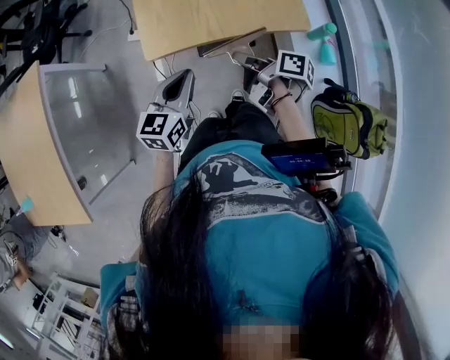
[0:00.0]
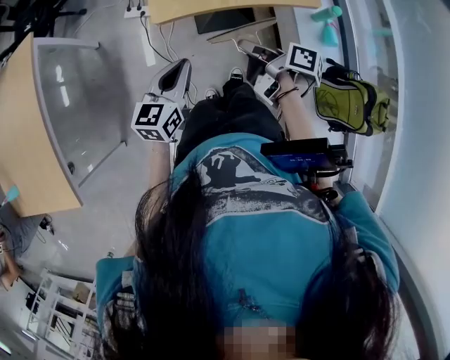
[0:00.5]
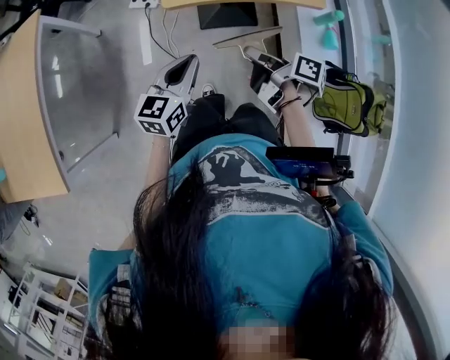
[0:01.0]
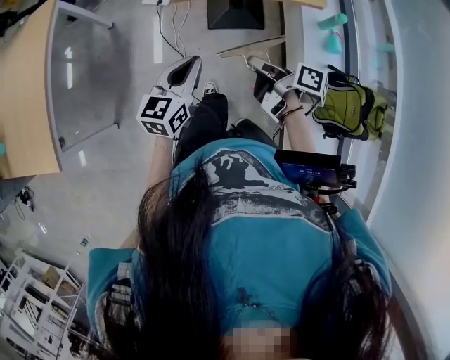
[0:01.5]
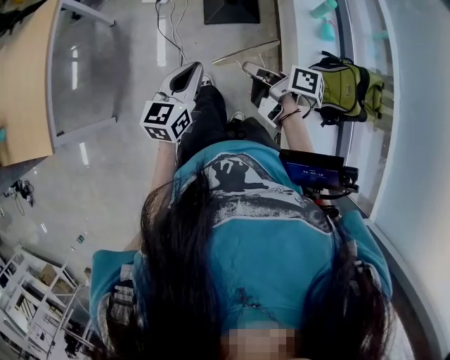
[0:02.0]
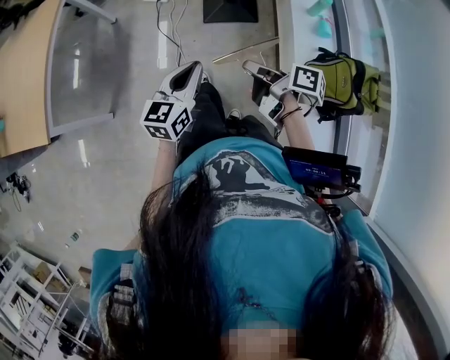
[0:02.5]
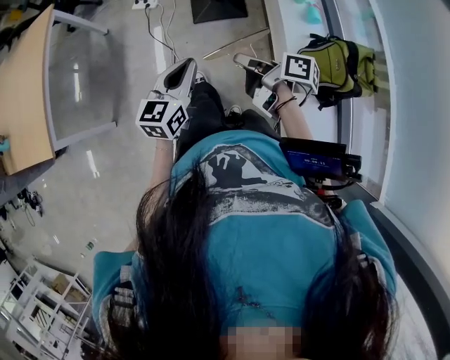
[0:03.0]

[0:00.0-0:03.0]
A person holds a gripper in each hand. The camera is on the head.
0.0 to 1.5 s: The left gripper moves about 20 cm.
1.5 to 3.0 s: The left gripper shifts by approximately 20 cm.

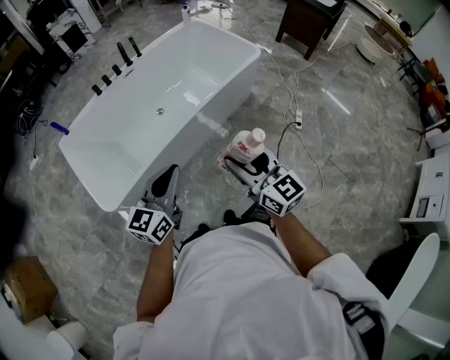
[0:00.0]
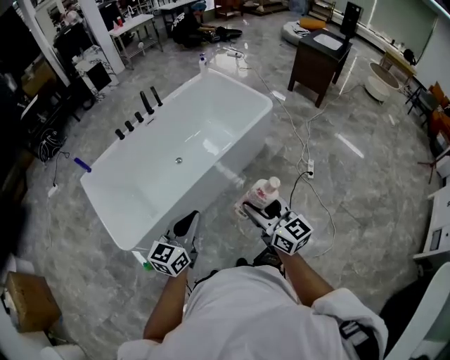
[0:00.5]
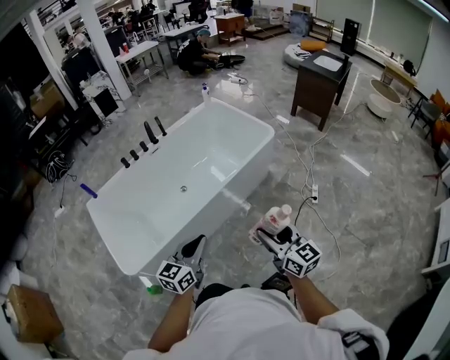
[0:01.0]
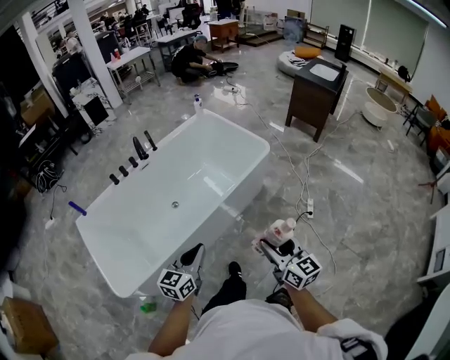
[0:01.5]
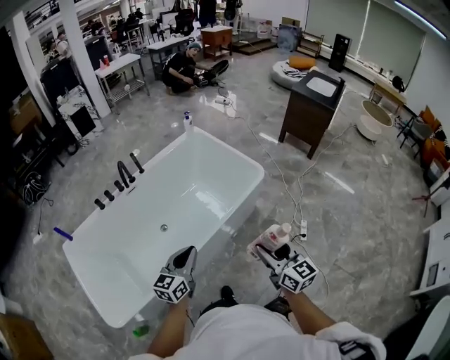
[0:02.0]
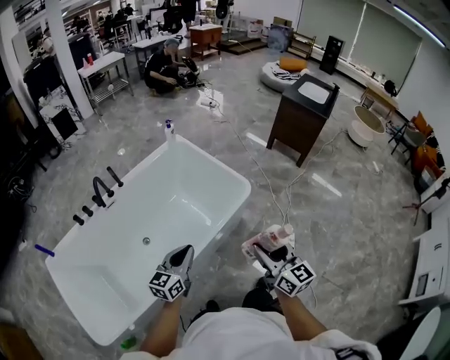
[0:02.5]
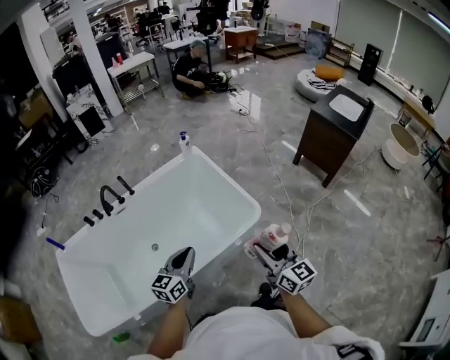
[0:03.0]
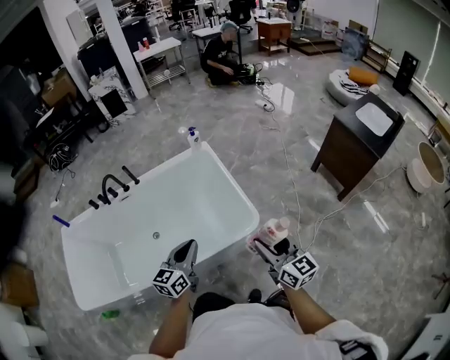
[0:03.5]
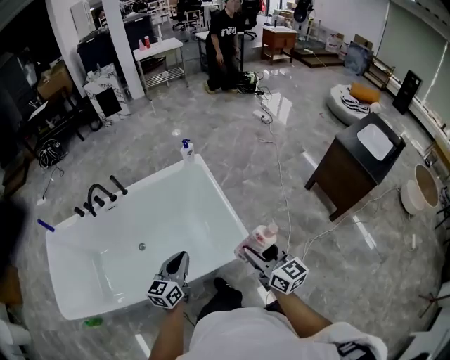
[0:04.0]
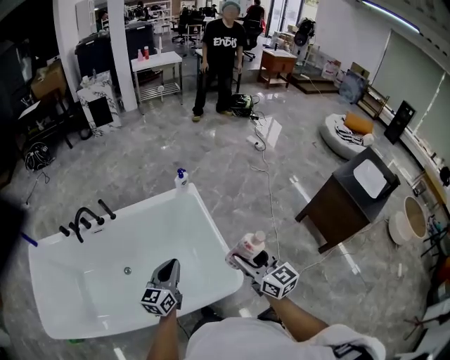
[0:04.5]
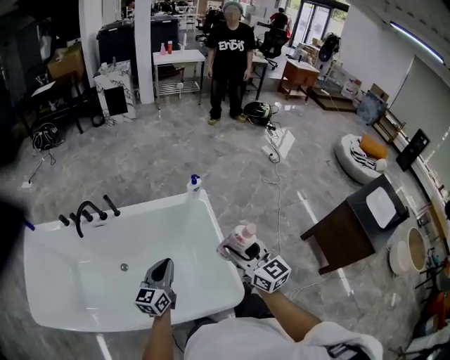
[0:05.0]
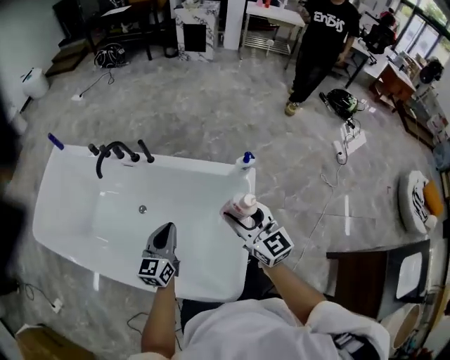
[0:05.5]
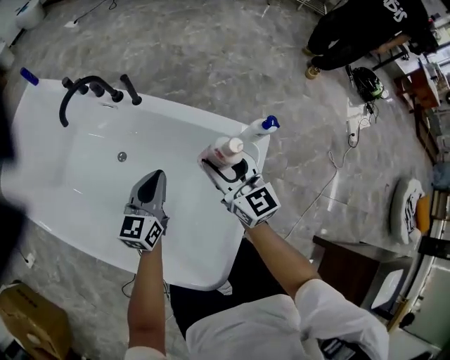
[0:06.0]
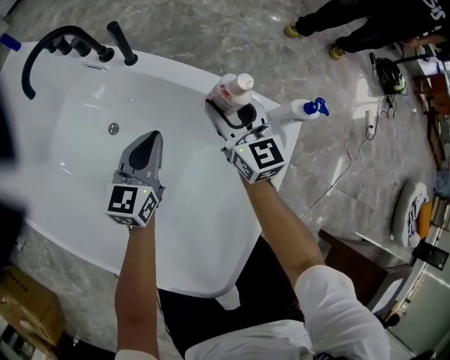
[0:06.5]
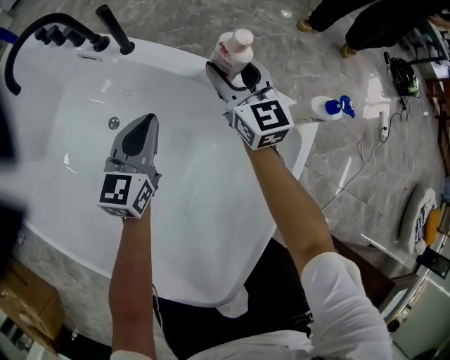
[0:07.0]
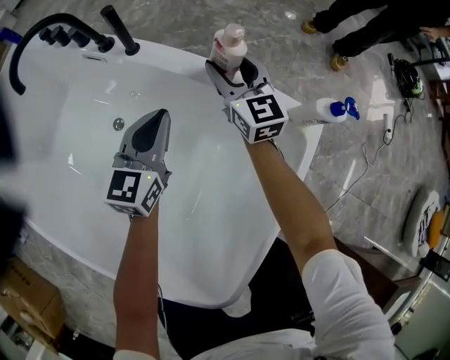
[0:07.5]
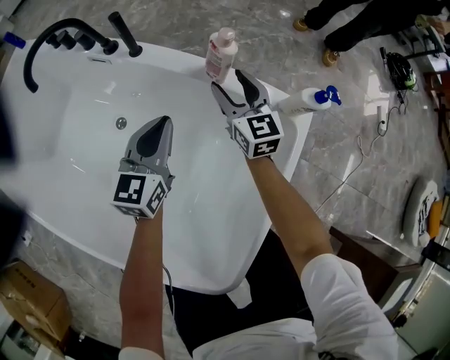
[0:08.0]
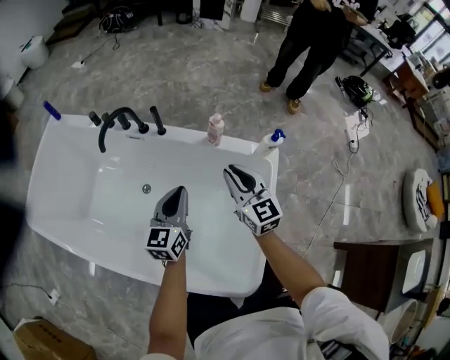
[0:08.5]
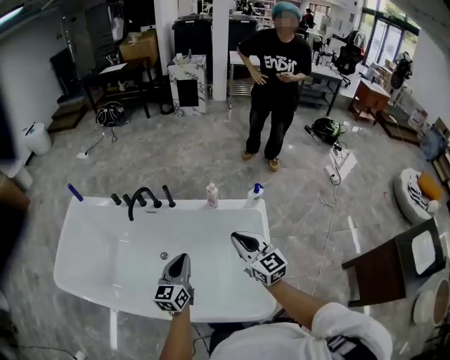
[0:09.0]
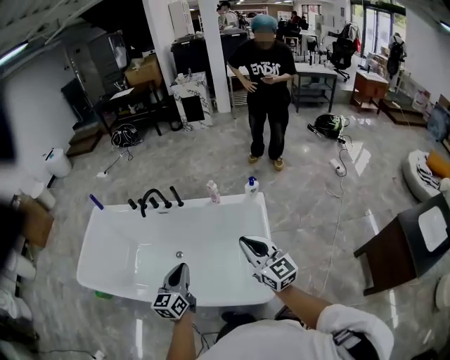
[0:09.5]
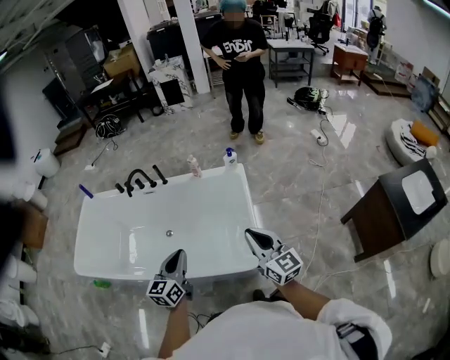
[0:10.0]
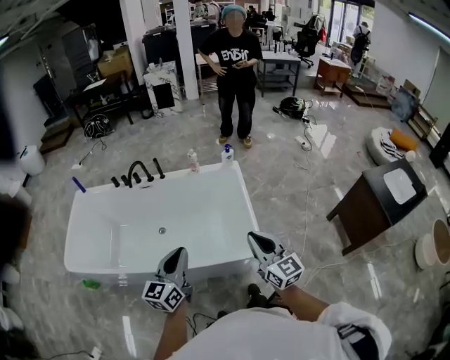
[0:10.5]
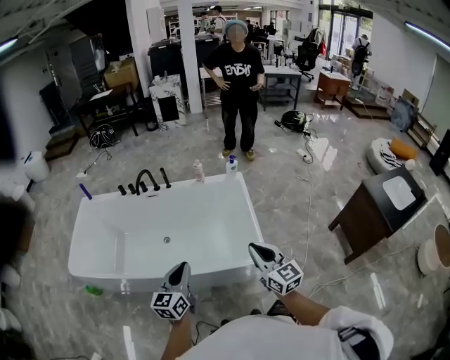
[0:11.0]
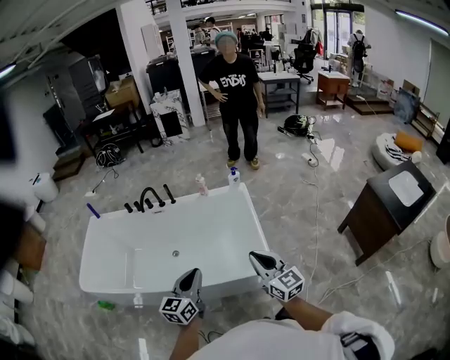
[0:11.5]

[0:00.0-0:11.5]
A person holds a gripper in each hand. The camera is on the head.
0.0 to 2.0 s: The right gripper is displaced forward and to the right by roughly 35 cm; the left gripper is displaced forward by roughly 35 cm.
2.0 to 4.0 s: The pair of grippers is taken some 50 cm. The left gripper changes its angle by roughly 30 degrees. The right gripper rotates approximately 30 degrees.
4.0 to 6.0 s: The two grippers travel together, about 50 cm. The right gripper changes its angle by some 40 degrees; the left gripper turns by roughly 40 degrees.
6.0 to 7.5 s: The left gripper shifts approximately 20 cm downward and forward; the right gripper is displaced forward and downward by roughly 30 cm.
7.5 to 9.5 s: Both grippers are carried backward, some 50 cm. The two grippers go about 40 cm upward. The right gripper closes its fingers.
9.5 to 11.5 s: The two grippers go approximately 25 cm backward.

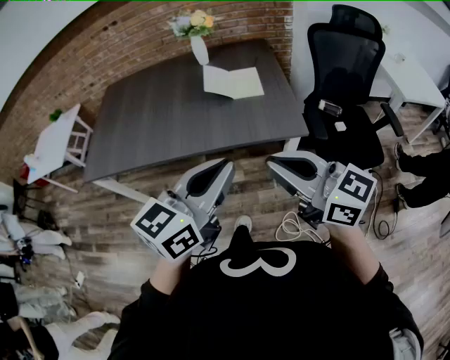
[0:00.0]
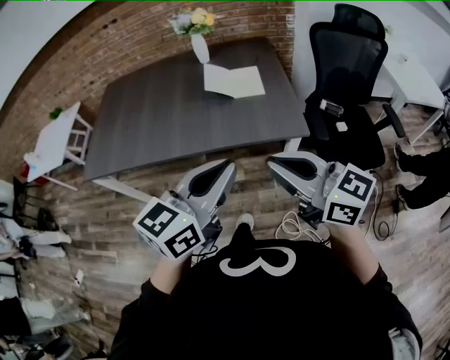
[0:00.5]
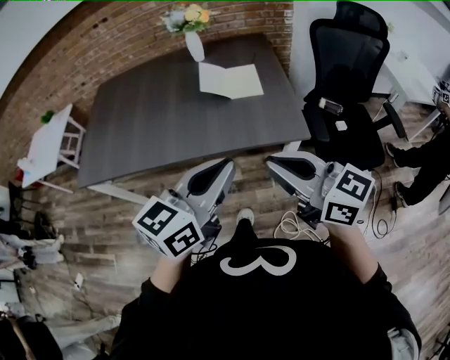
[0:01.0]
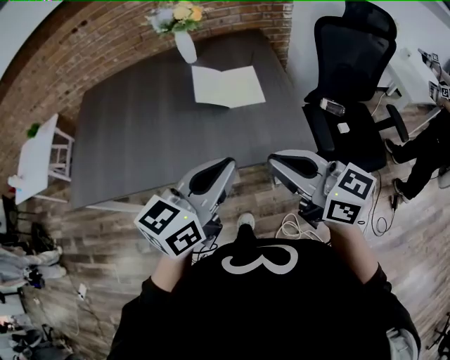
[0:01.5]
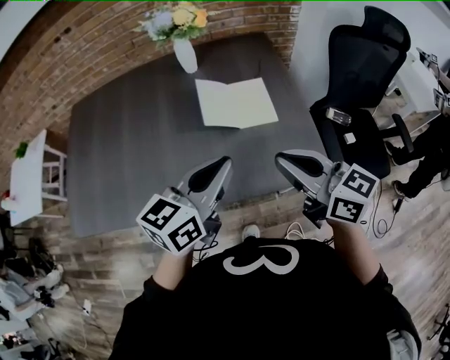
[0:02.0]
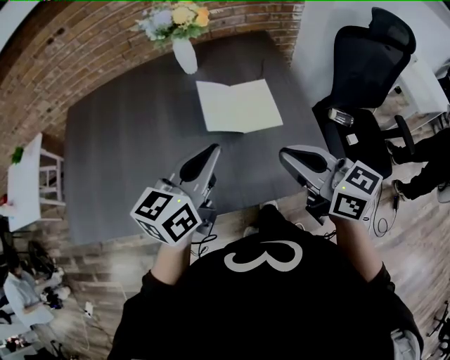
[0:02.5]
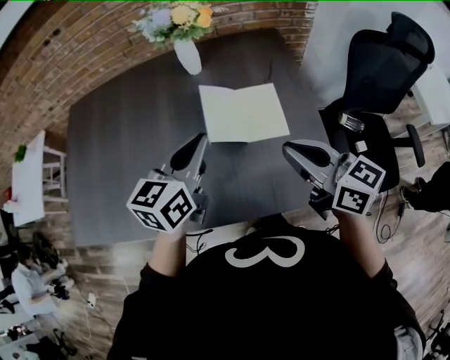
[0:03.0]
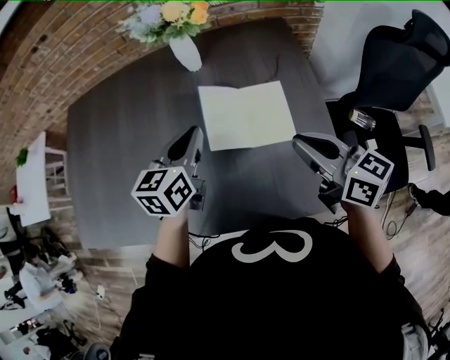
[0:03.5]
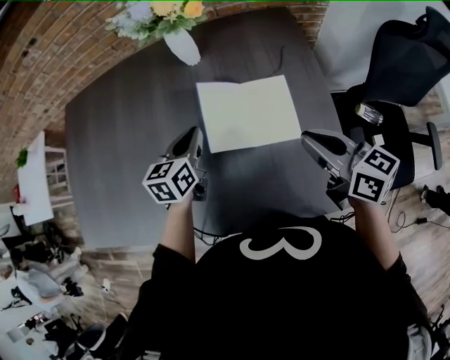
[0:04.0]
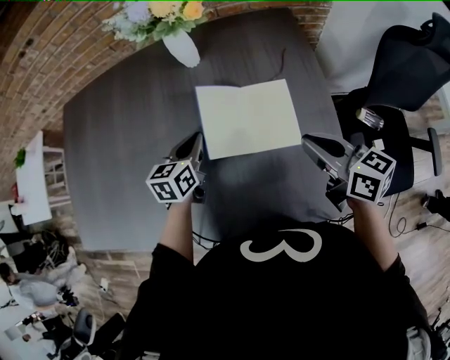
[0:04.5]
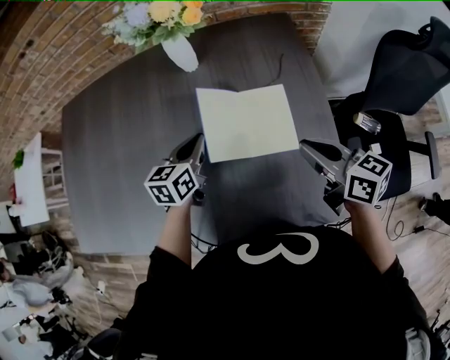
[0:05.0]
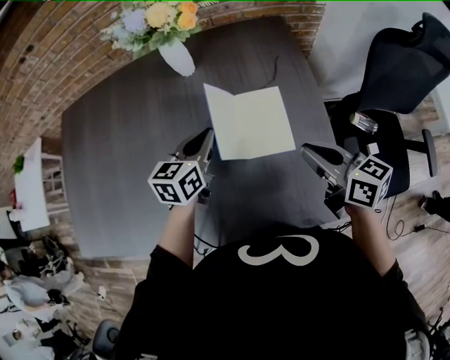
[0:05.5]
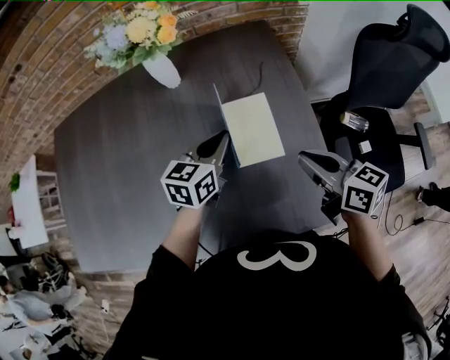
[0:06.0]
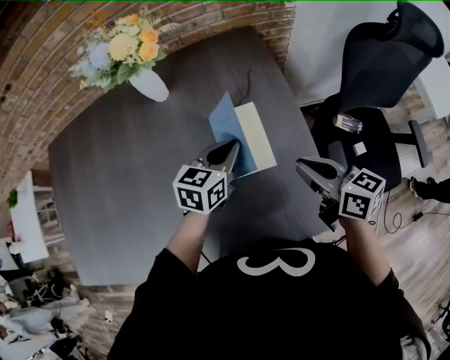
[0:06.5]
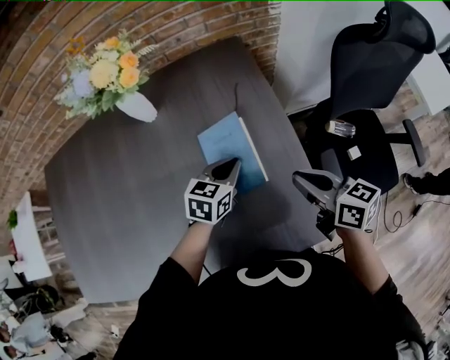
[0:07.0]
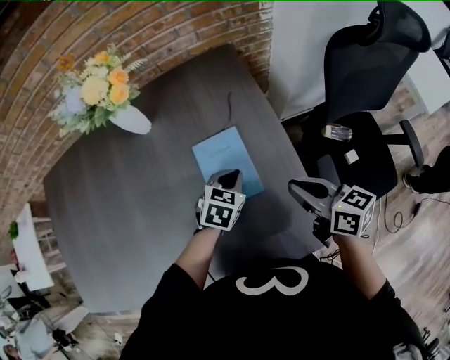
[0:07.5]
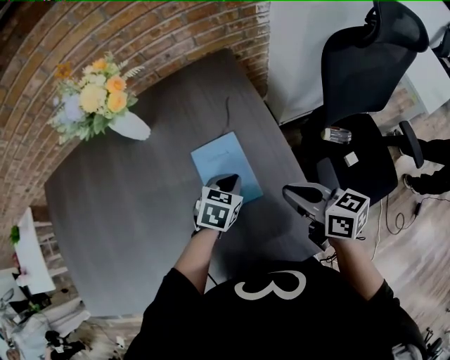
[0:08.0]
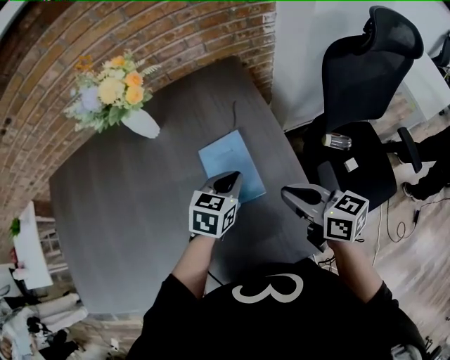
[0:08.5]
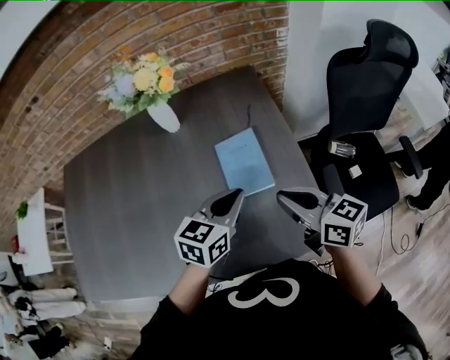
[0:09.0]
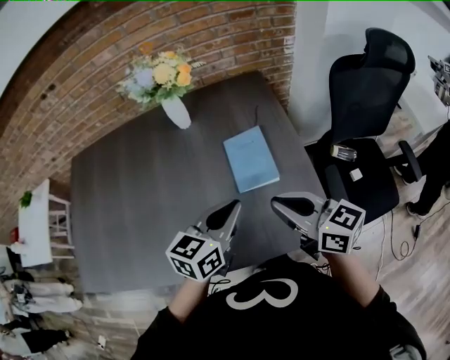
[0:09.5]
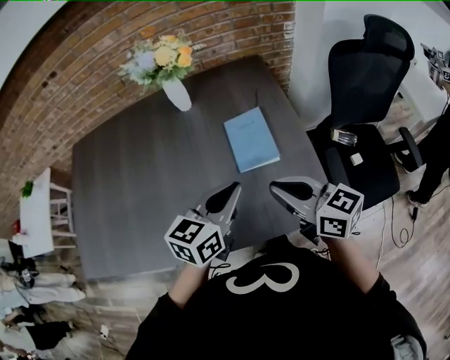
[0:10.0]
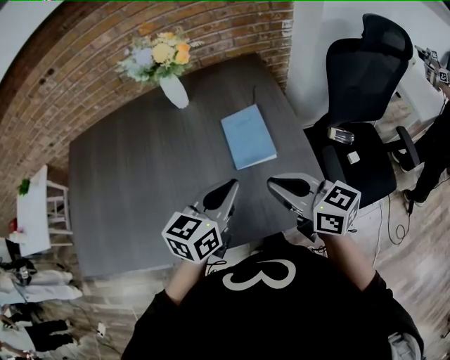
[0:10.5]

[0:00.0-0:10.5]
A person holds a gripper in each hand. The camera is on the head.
0.0 to 2.0 s: The grippers both shift forward by about 30 cm.
2.0 to 4.0 s: The left gripper travels forward and downward by some 30 cm, and swivels approximately 30 degrees, while the right gripper goes approximately 20 cm forward, to the right and downward.
4.0 to 6.5 s: The right gripper shifts some 5 cm to the right; the left gripper shifts approximately 20 cm to the right, and swivels about 20 degrees.
6.5 to 8.5 s: The left gripper reaches some 10 cm downward, then returns.
8.5 to 10.5 s: The left gripper is displaced backward, upward and to the left by roughly 25 cm, and changes its angle by about 20 degrees; the right gripper goes about 15 cm to the left, backward and upward.

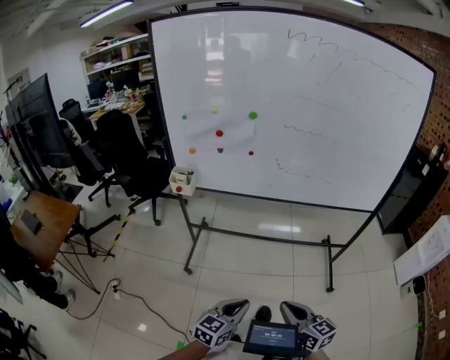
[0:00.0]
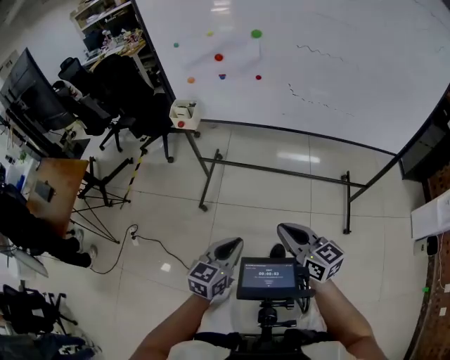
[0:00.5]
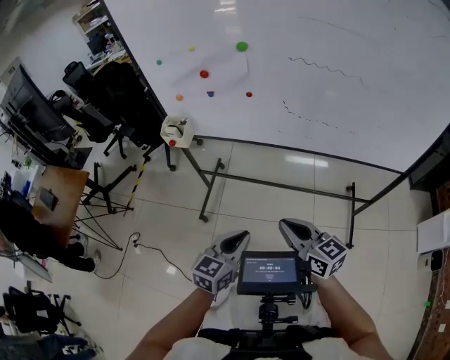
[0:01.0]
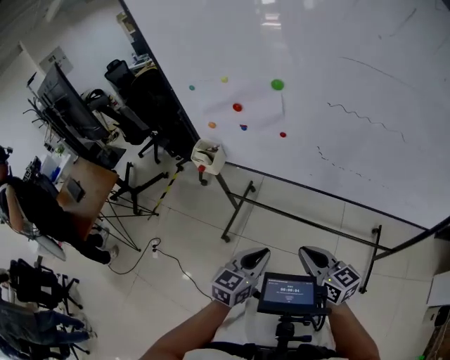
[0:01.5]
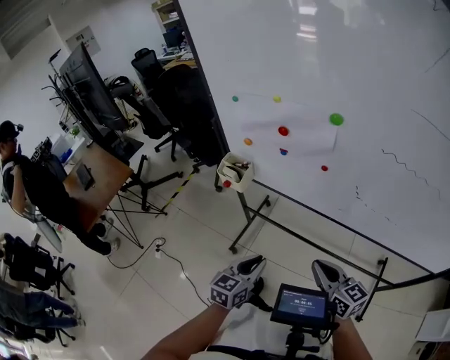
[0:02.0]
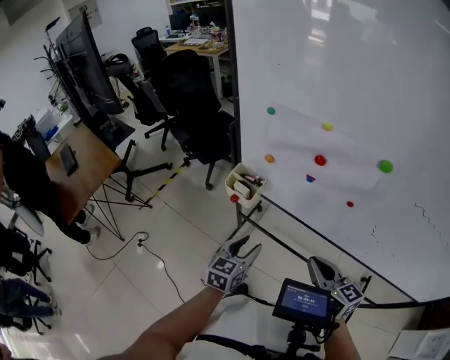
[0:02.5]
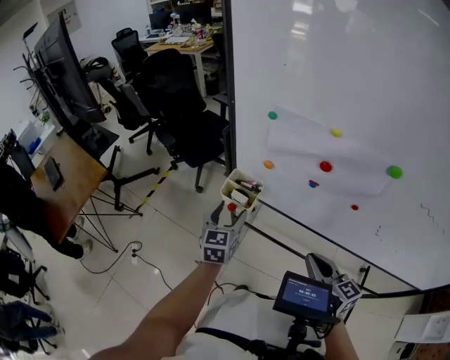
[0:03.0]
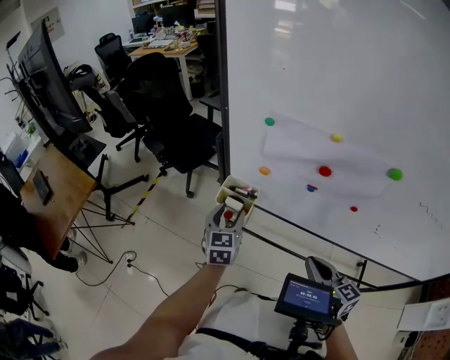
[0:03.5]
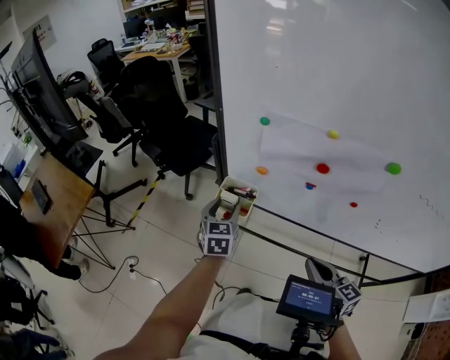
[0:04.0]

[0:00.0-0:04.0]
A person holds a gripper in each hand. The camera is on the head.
0.0 to 2.0 s: The two grippers go about 40 cm forward. The left gripper changes its angle by roughly 30 degrees.
2.0 to 4.0 s: The left gripper is displaced forward and to the left by about 40 cm, rotates some 20 degrees, and opens its fingers. The right gripper is displaced forward and to the left by about 20 cm.
